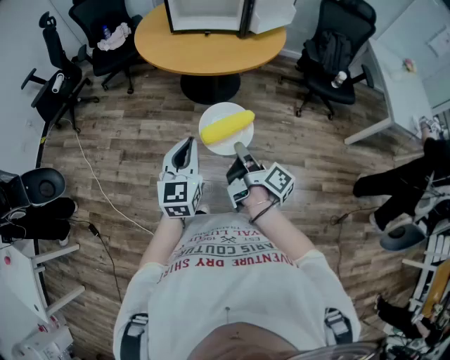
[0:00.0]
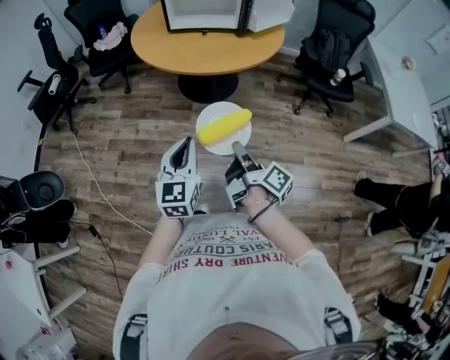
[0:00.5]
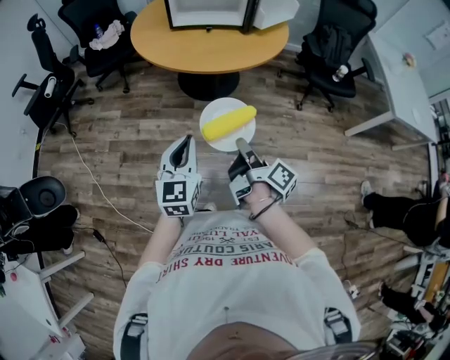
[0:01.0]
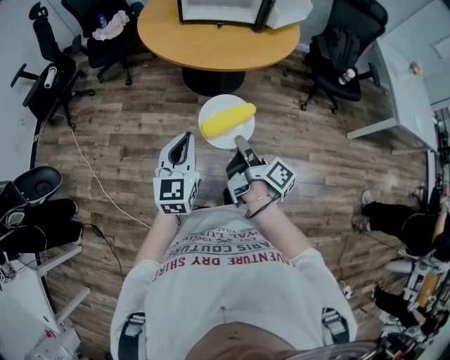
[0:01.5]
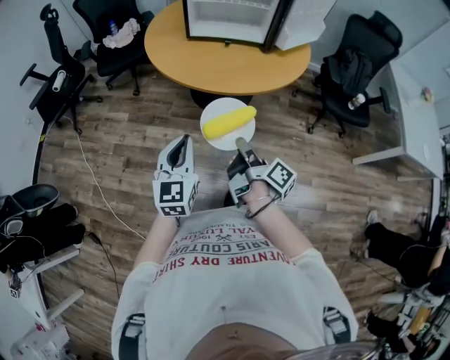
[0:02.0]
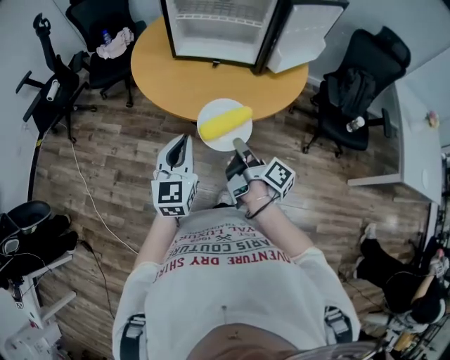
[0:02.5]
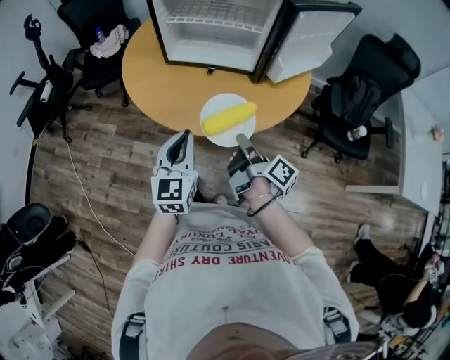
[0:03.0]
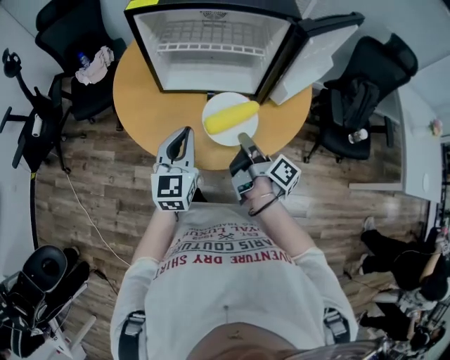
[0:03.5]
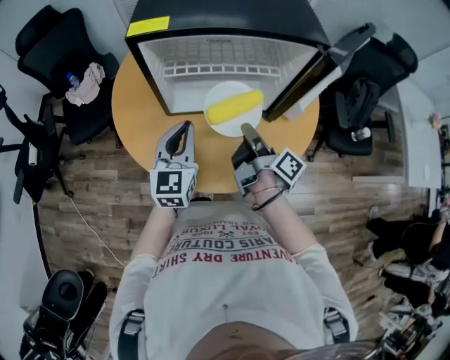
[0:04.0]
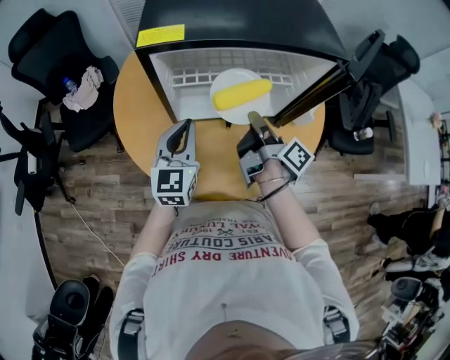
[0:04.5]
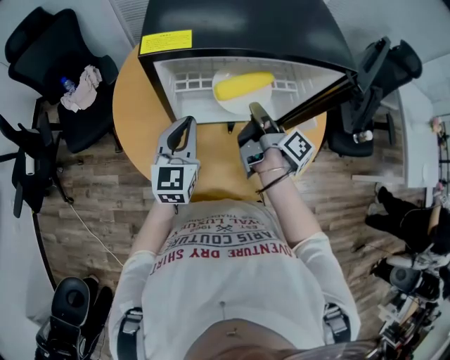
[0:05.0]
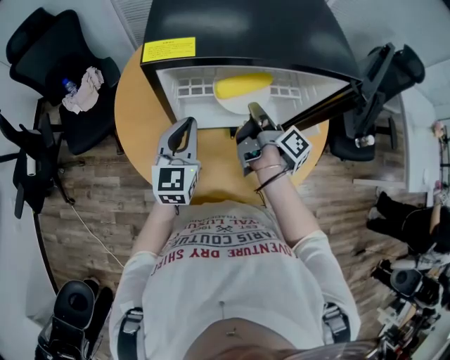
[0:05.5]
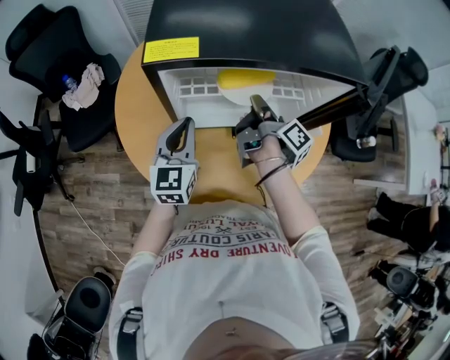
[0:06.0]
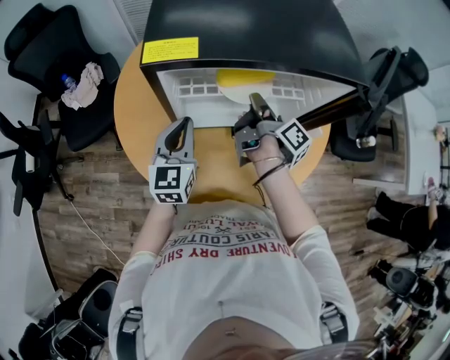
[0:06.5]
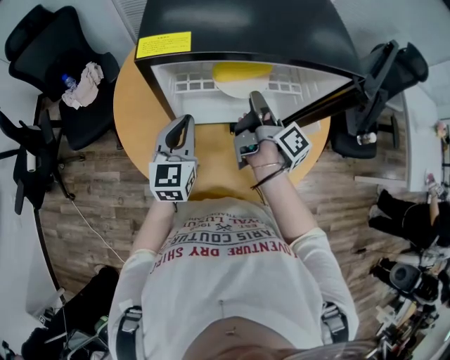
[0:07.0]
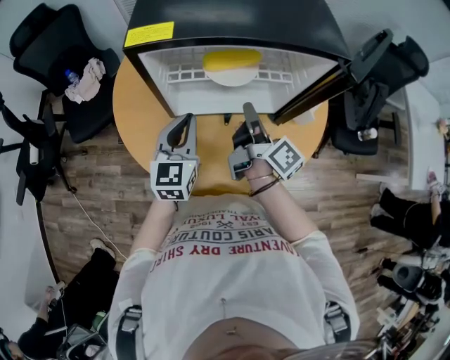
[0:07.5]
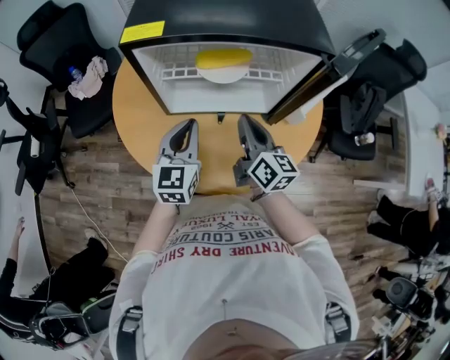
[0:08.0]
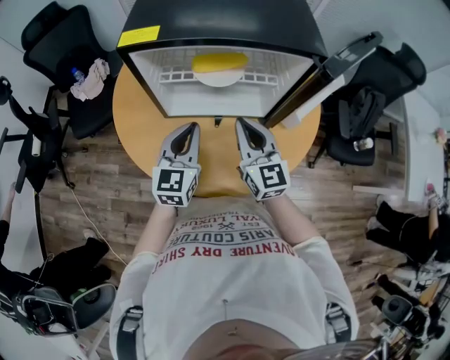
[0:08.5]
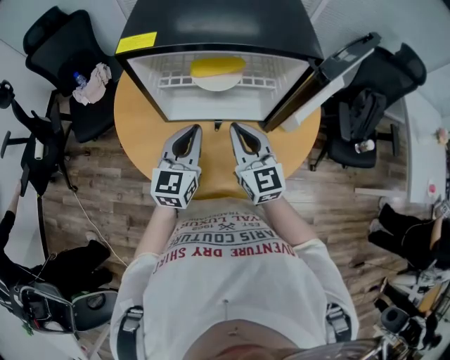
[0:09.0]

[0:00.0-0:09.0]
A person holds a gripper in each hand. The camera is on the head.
0:00.0 to 0:02.0: The left gripper shifts by approximately 20 cm.
0:02.0 to 0:04.5: The left gripper shifts by some 50 cm.
0:07.0 to 0:09.0: The left gripper moves about 10 cm.

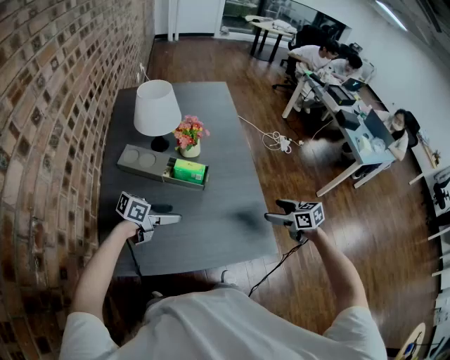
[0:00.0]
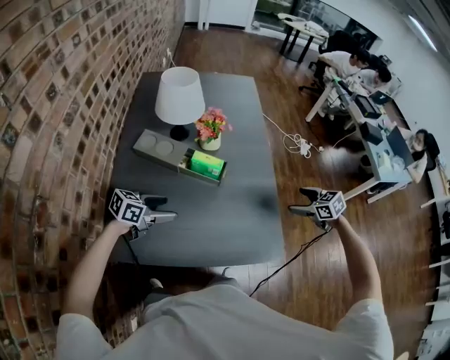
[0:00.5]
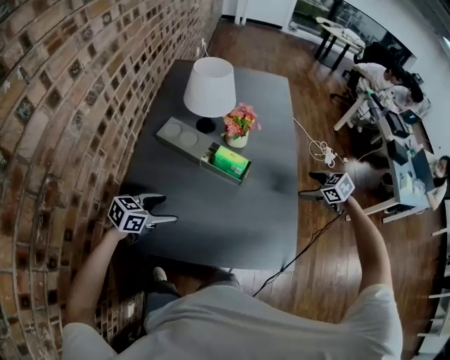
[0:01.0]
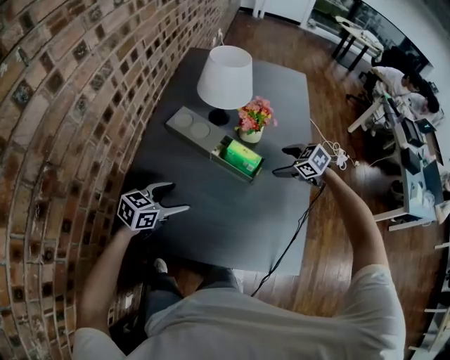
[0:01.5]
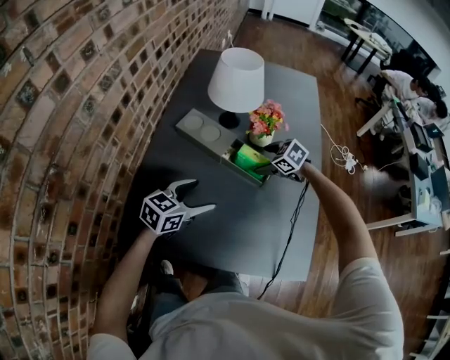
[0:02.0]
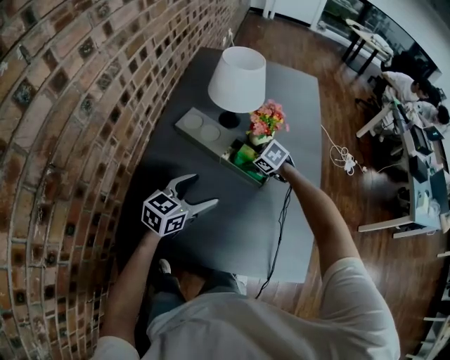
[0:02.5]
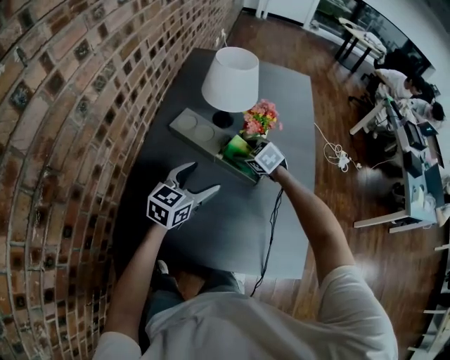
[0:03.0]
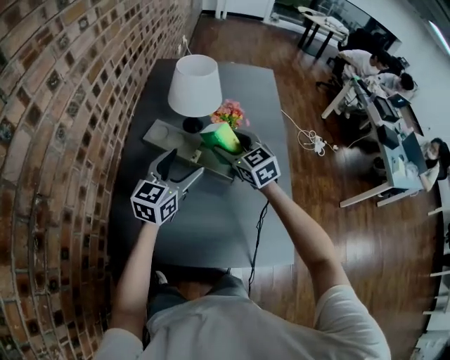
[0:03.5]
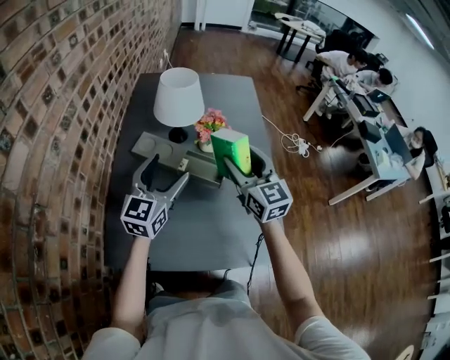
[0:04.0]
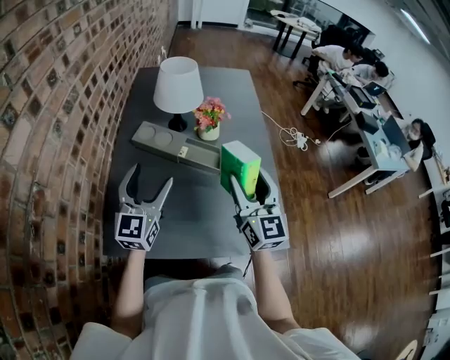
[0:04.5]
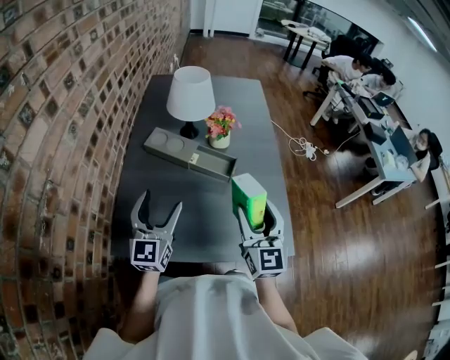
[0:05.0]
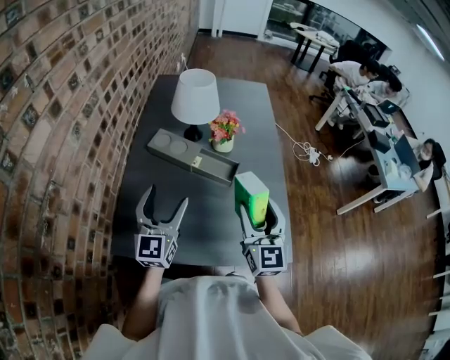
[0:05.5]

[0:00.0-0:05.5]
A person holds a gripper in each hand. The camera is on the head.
0:00.0 to 0:02.0: The right gripper moves some 35 cm, and twists roughly 40 degrees counterclockwise, seen from behind; the left gripper turns by about 40 degrees.
0:02.0 to 0:03.5: The right gripper goes roughly 20 cm upward, tilts its fingers roughly 30 degrees upward, and closes its fingers. Meanwhile the left gripper shifts roughly 15 cm upward and forward, and rotates approximately 20 degrees.
0:03.5 to 0:05.5: The right gripper moves backward, roughly 25 cm, and turns by roughly 40 degrees. The left gripper travels backward and to the left by approximately 15 cm, and turns by approximately 20 degrees.

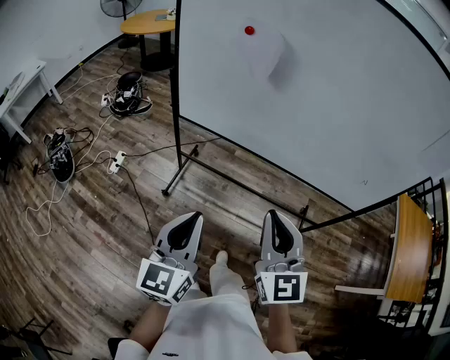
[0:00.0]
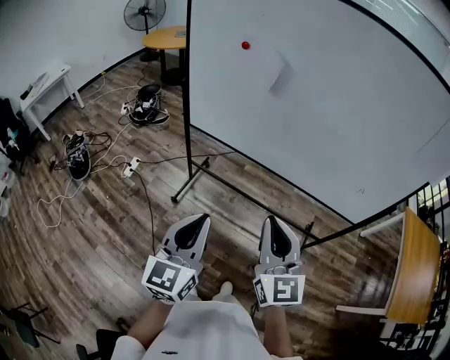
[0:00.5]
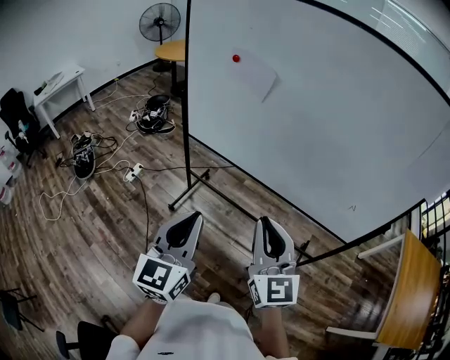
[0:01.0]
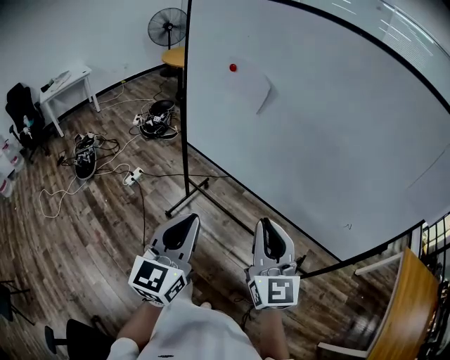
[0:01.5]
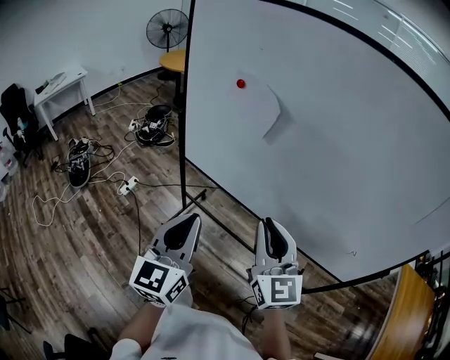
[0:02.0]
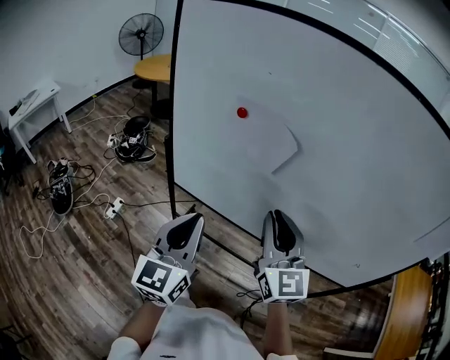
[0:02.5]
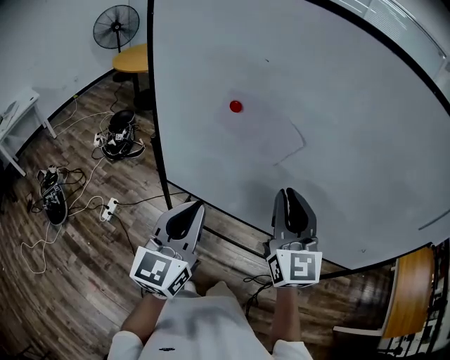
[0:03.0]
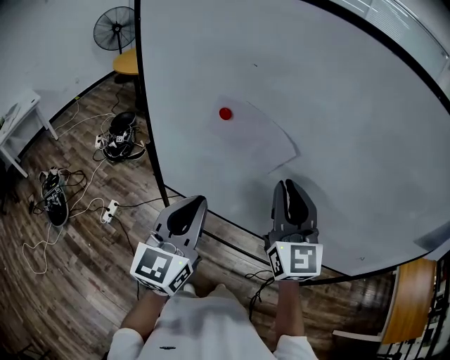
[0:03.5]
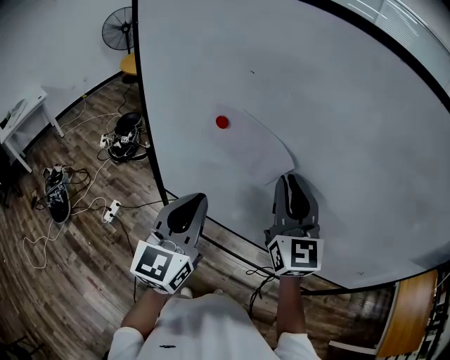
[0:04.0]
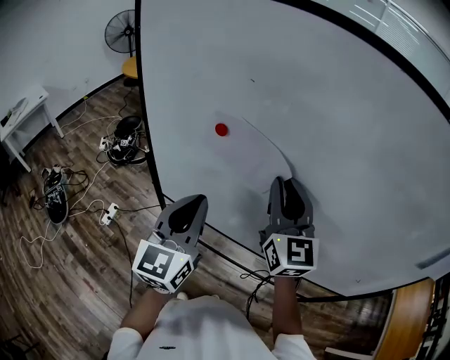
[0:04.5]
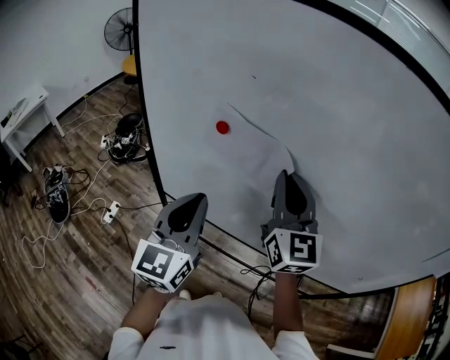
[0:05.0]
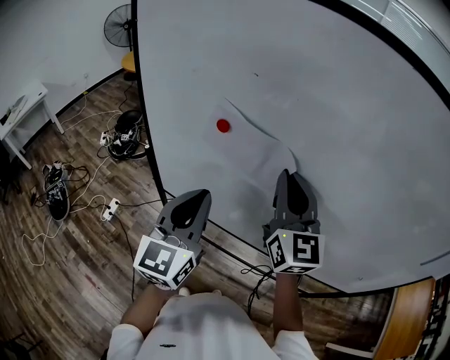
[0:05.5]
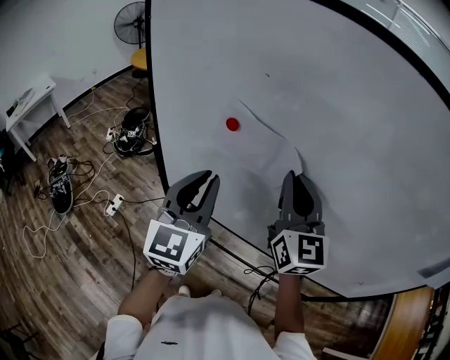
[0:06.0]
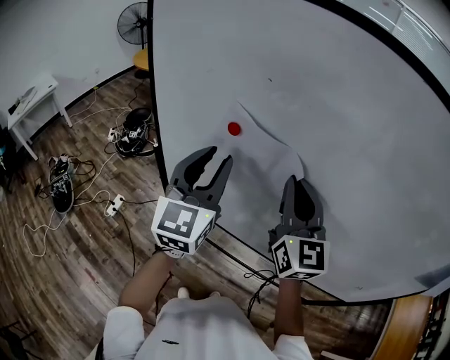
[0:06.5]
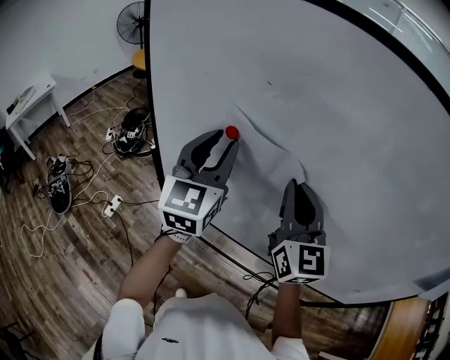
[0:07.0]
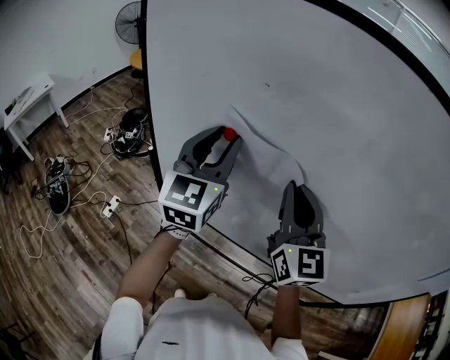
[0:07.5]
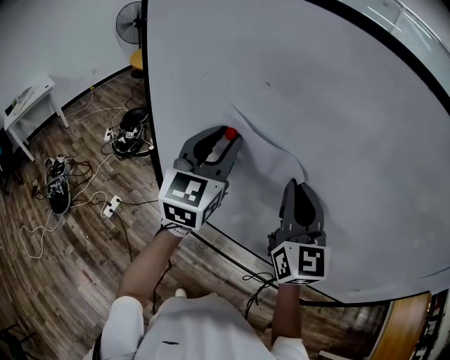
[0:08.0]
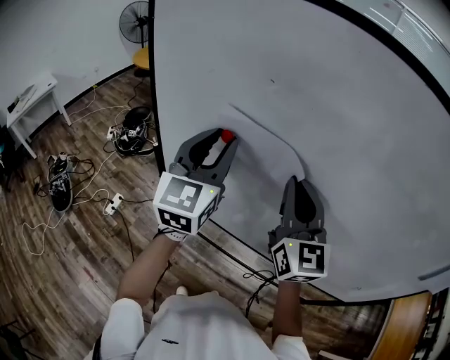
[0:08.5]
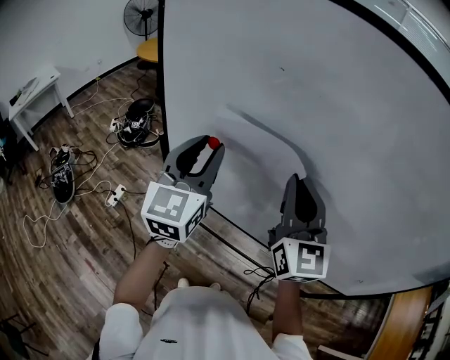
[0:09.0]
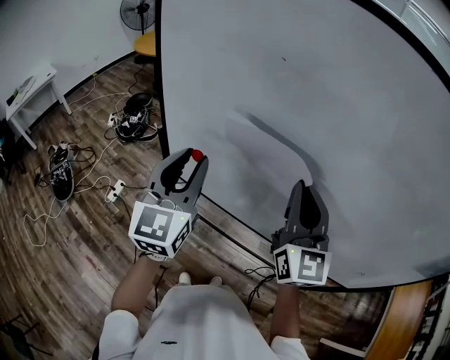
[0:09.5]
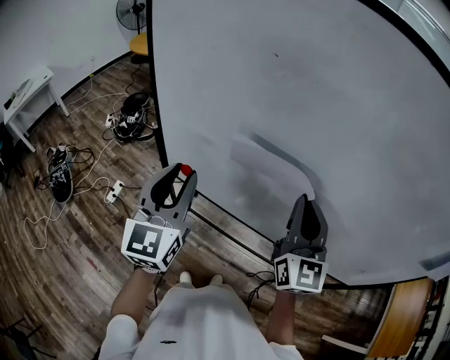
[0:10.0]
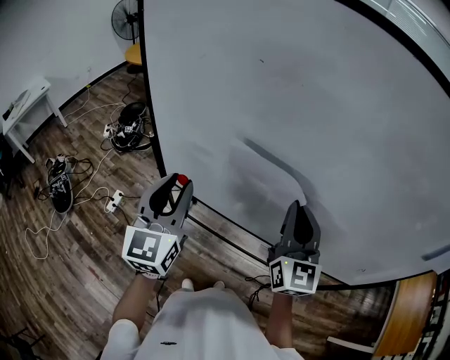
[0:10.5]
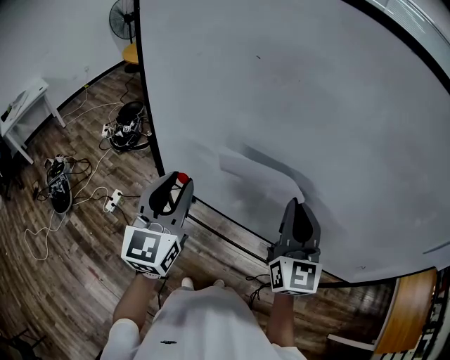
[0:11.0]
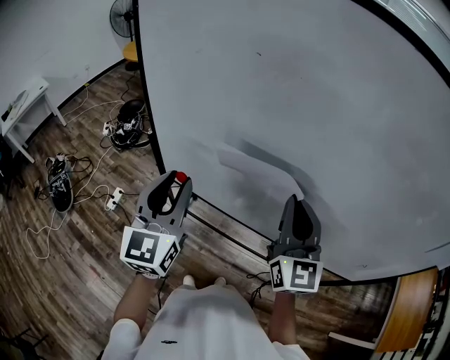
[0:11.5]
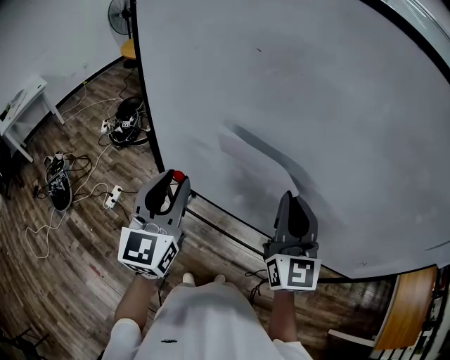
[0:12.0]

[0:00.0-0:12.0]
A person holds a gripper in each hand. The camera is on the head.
0:00.0 to 0:02.0: The left gripper goes roughly 15 cm to the right, forward and upward; the right gripper heads forward and to the right, covering approximately 15 cm.
0:02.0 to 0:04.0: Both grippers move forward, approximately 25 cm.
0:04.0 to 0:06.0: The grippers stay close to where they were, moving slightly.
0:06.0 to 0:08.0: The left gripper shifts some 10 cm forward and upward, and opens.
0:08.0 to 0:10.0: The right gripper moves backward, some 5 cm. Meanwhile the left gripper is displaced backward, downward and to the left by approximately 15 cm.
0:10.0 to 0:12.0: The grippers move only a little.
